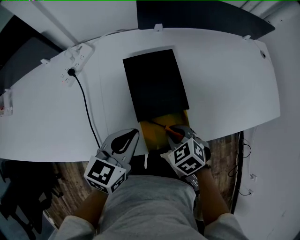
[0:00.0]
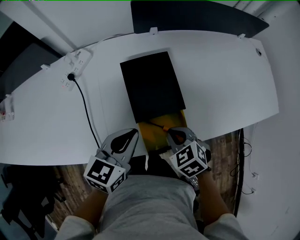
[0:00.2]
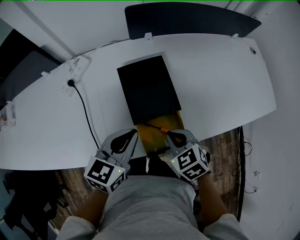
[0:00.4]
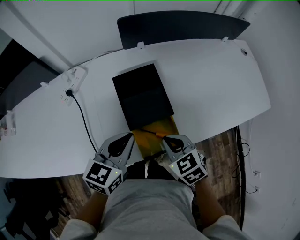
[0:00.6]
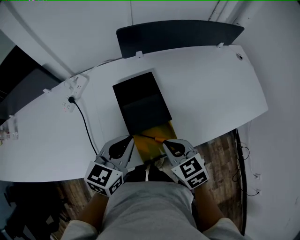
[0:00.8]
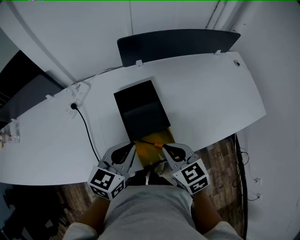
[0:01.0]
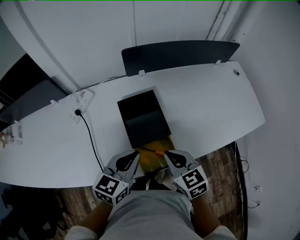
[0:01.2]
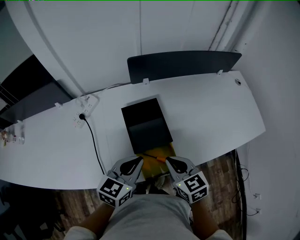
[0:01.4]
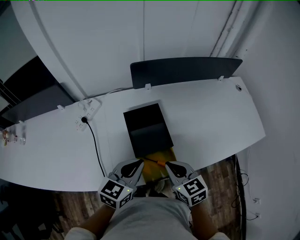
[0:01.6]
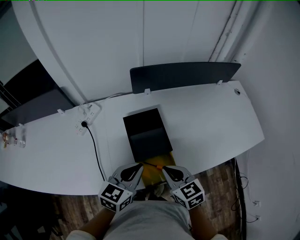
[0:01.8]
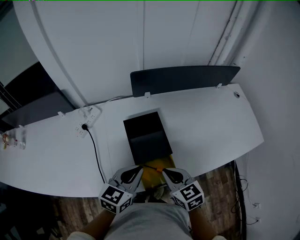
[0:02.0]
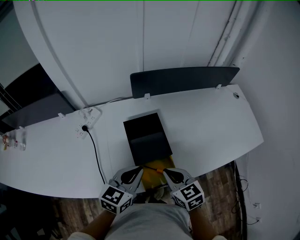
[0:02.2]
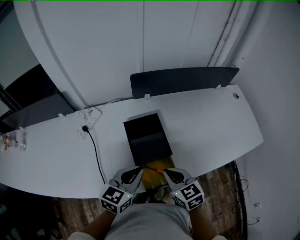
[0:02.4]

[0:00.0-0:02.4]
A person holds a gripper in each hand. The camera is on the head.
0:00.0 to 0:01.2: The right gripper heads upward, covering some 15 cm, and changes its angle by about 30 degrees. The left gripper heads upward, covering about 5 cm.
0:01.2 to 0:02.4: The grippers move only a little.

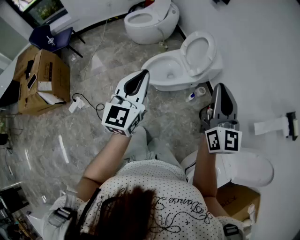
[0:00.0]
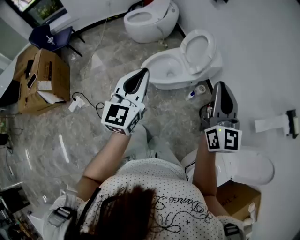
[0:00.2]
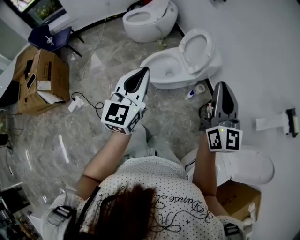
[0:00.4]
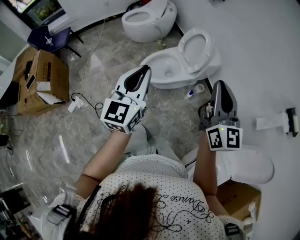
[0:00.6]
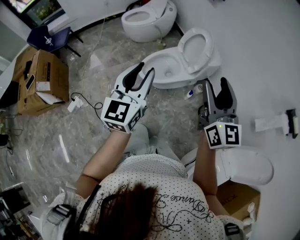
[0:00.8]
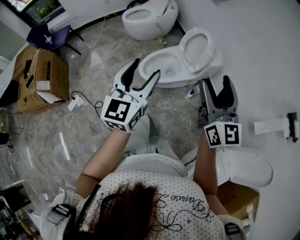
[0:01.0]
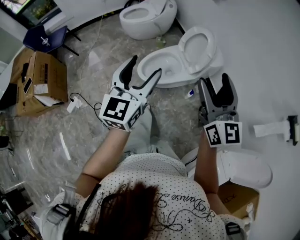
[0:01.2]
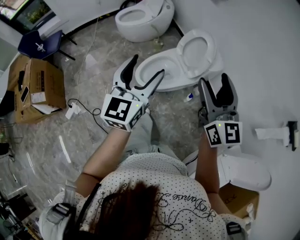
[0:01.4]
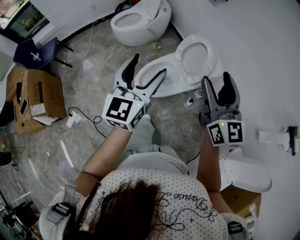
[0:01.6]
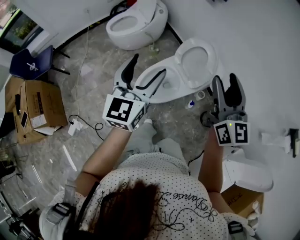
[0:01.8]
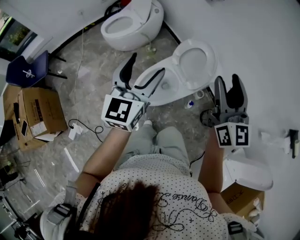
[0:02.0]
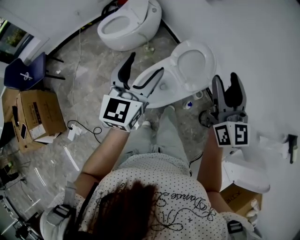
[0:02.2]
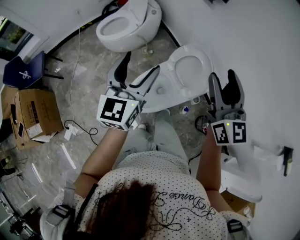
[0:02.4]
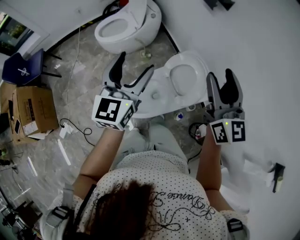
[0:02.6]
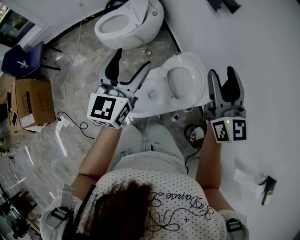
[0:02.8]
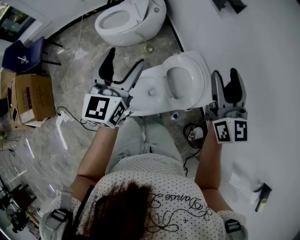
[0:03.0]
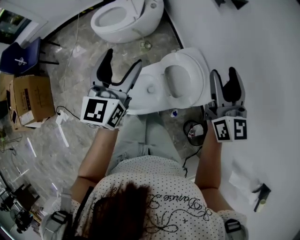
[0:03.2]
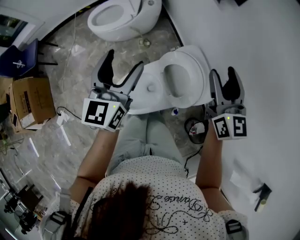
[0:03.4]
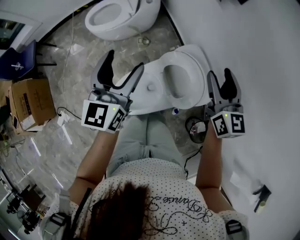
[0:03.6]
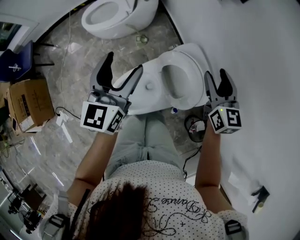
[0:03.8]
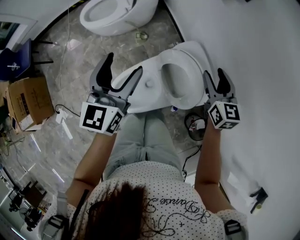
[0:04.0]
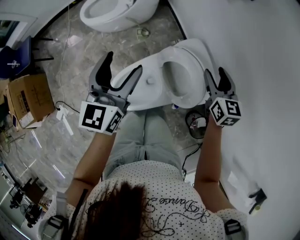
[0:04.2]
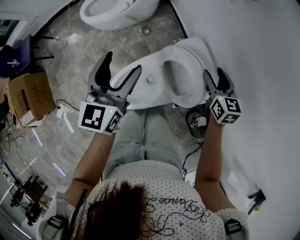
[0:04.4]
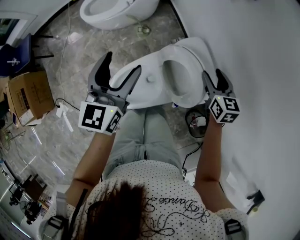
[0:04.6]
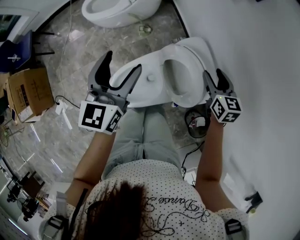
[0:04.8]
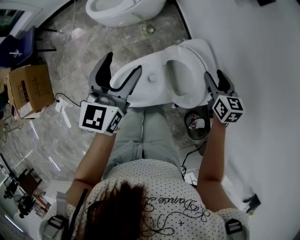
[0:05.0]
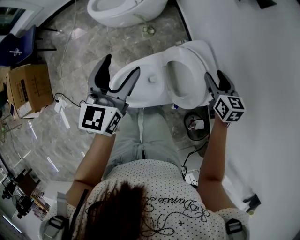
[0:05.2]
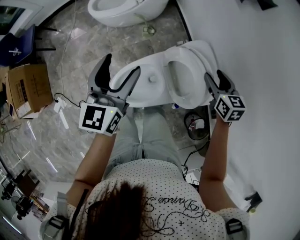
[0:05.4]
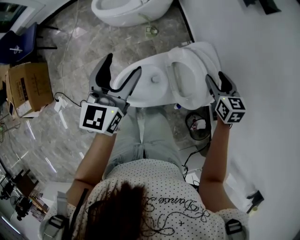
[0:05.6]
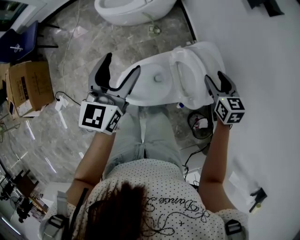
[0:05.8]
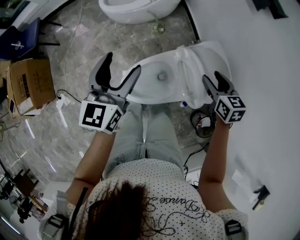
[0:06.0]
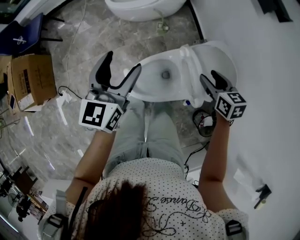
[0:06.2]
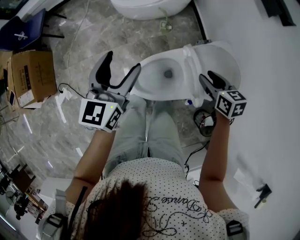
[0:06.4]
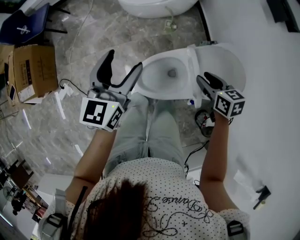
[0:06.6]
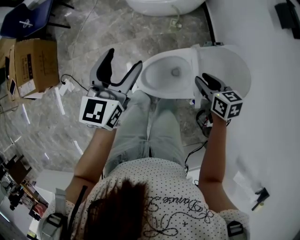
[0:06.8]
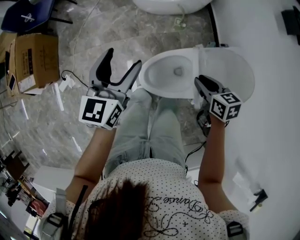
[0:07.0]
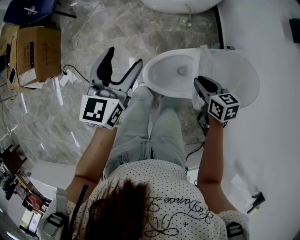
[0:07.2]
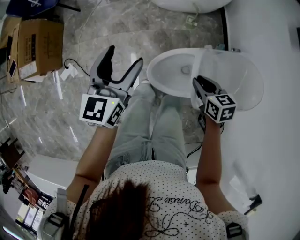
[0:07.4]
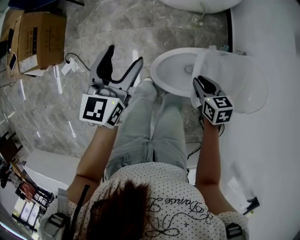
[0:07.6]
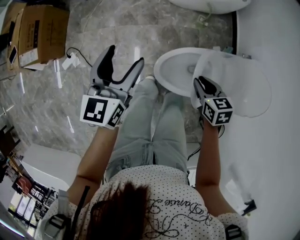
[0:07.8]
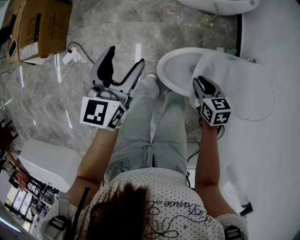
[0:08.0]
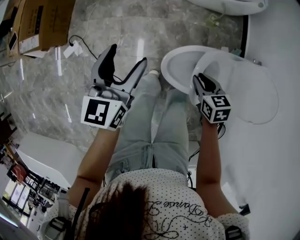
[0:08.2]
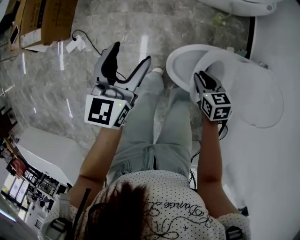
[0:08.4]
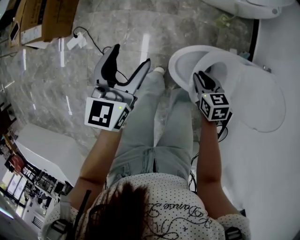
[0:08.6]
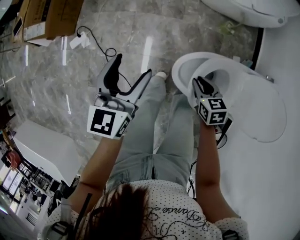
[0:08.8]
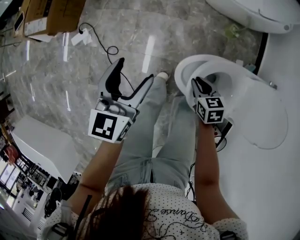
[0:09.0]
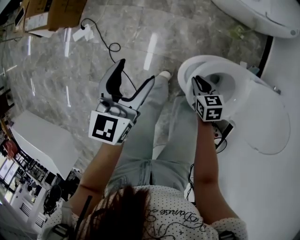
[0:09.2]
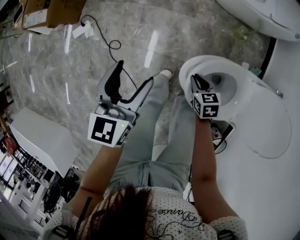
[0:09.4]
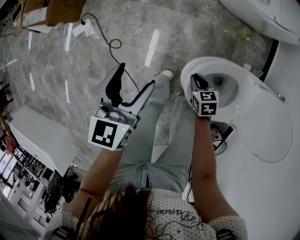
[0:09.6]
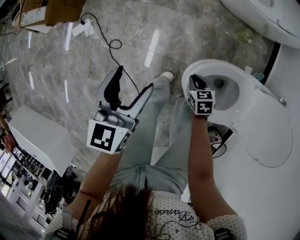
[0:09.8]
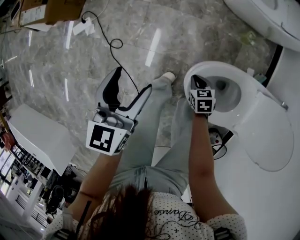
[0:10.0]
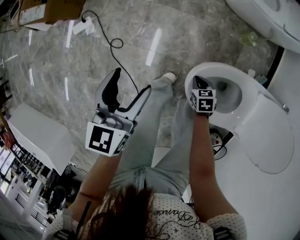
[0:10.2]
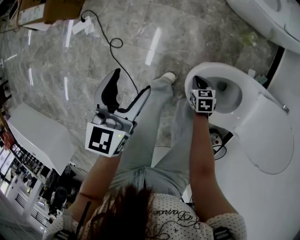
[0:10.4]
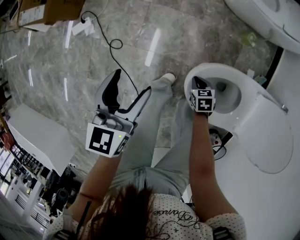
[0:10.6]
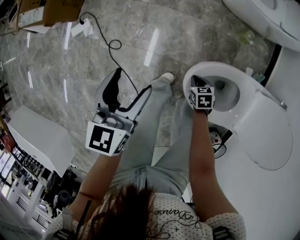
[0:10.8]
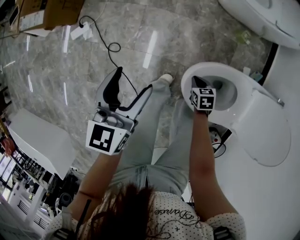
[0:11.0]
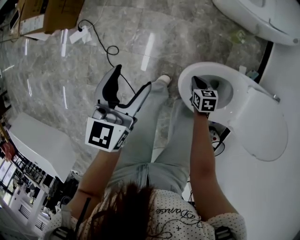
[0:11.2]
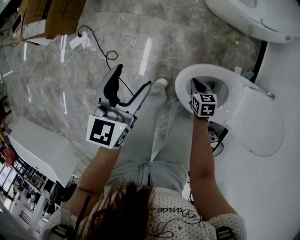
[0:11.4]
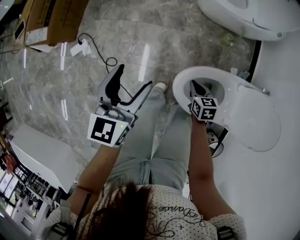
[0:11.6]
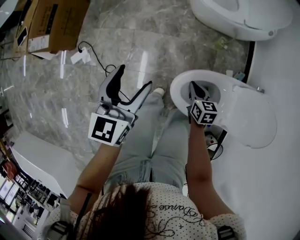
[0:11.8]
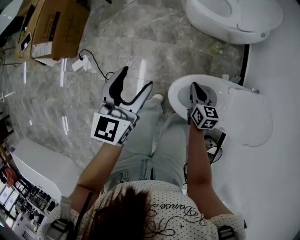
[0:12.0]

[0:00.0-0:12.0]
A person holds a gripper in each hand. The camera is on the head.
0:00.0 to 0:01.6: The two grippers go about 20 cm forward. The right gripper opens its fingers; the left gripper opens up.
0:01.6 to 0:03.0: Both grippers move forward, approximately 35 cm.
0:03.0 to 0:04.4: The left gripper goes about 10 cm downward and forward, while the right gripper heads downward, covering roughly 25 cm, and tips its fingers downward by about 30 degrees.
0:04.4 to 0:06.0: The two grippers go approximately 15 cm to the left.
0:06.0 to 0:07.6: The two grippers go some 25 cm to the left. The right gripper rotates approximately 20 degrees, and closes.
0:07.6 to 0:09.0: The left gripper travels to the left and downward by roughly 15 cm; the right gripper goes roughly 20 cm downward and to the left.
0:09.0 to 0:10.4: The right gripper travels downward by roughly 20 cm; the left gripper moves downward and to the left, some 10 cm.
0:10.4 to 0:12.0: The left gripper shifts about 15 cm upward. Meanwhile the right gripper heads upward, covering roughly 30 cm, and swivels approximately 40 degrees.

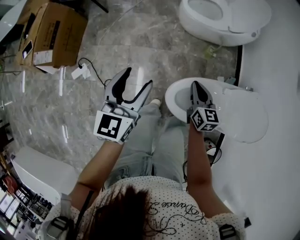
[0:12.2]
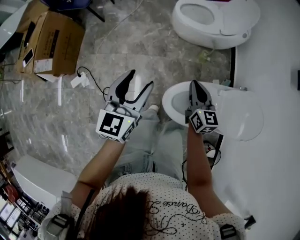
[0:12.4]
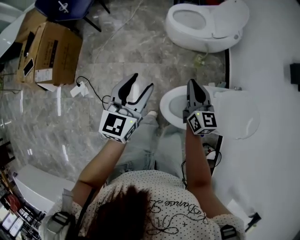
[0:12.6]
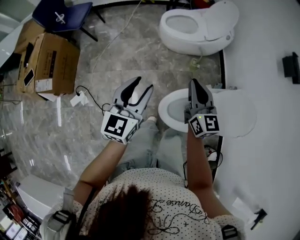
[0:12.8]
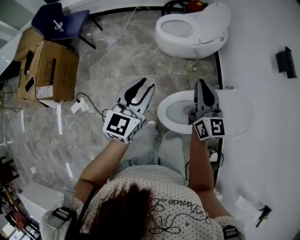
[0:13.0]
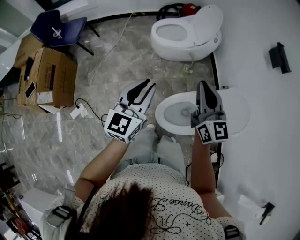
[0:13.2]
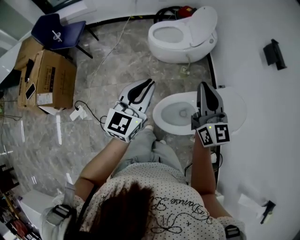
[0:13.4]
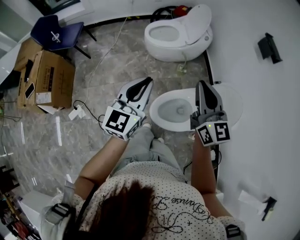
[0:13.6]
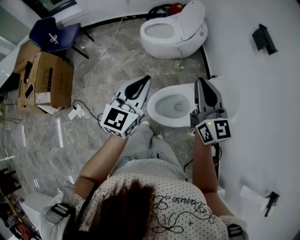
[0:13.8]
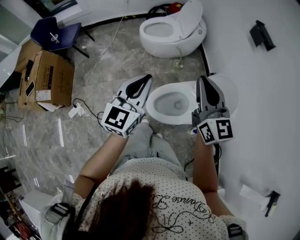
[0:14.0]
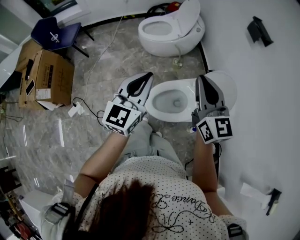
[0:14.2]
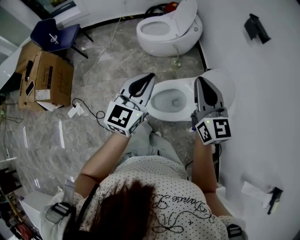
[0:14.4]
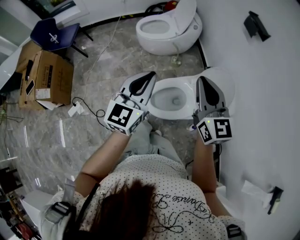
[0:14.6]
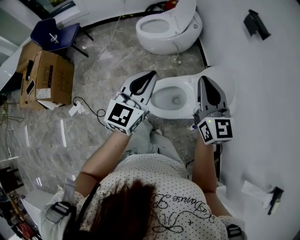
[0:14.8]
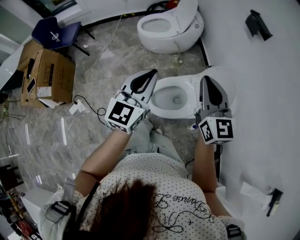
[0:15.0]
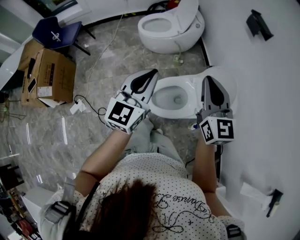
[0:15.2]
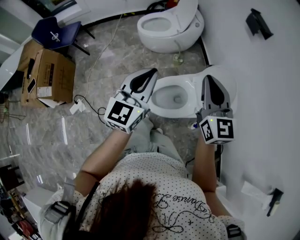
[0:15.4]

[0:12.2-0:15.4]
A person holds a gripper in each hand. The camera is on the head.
0:12.2 to 0:13.8: The left gripper shifts approximately 25 cm to the right and upward, swivels some 30 degrees, and closes its fingers. The right gripper heads upward and to the right, covering about 35 cm, and turns by roughly 30 degrees.
0:13.8 to 0:15.4: Both grippers move to the right, some 5 cm.

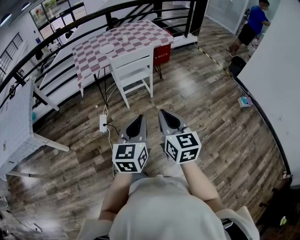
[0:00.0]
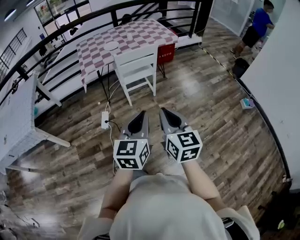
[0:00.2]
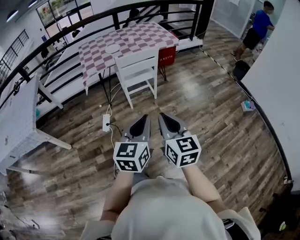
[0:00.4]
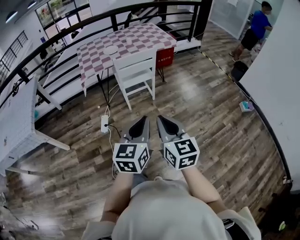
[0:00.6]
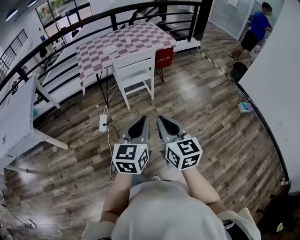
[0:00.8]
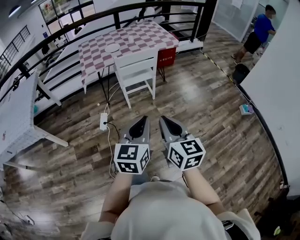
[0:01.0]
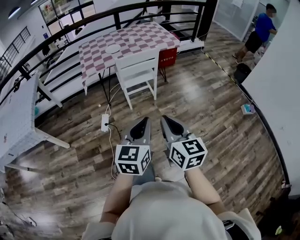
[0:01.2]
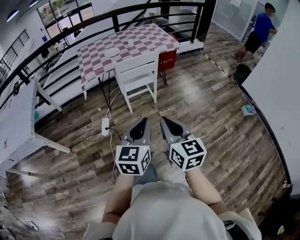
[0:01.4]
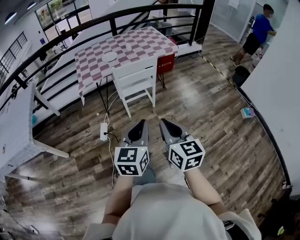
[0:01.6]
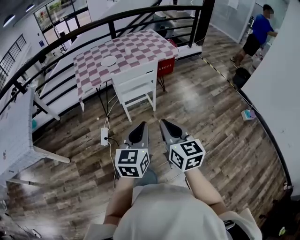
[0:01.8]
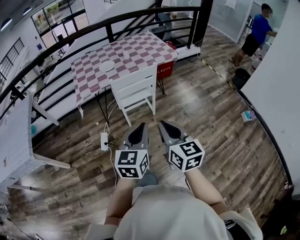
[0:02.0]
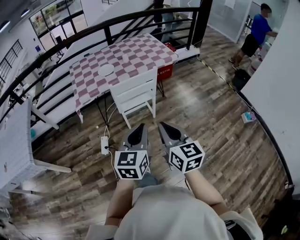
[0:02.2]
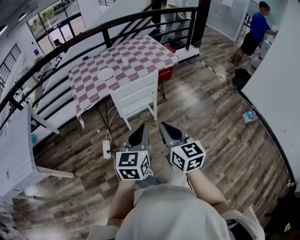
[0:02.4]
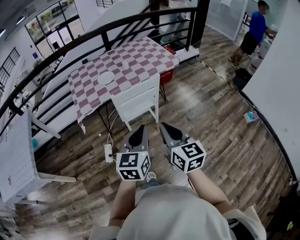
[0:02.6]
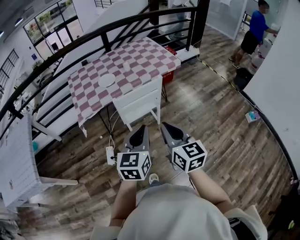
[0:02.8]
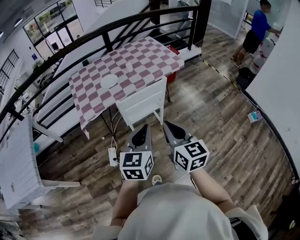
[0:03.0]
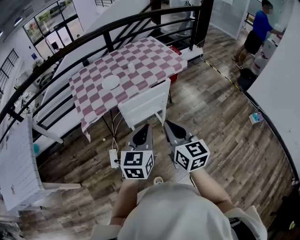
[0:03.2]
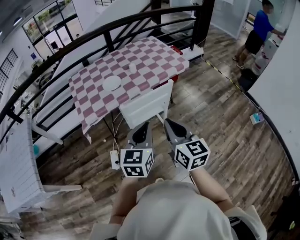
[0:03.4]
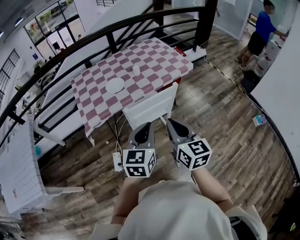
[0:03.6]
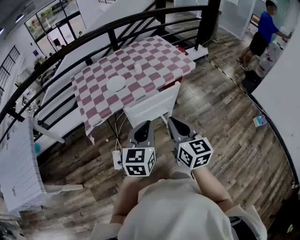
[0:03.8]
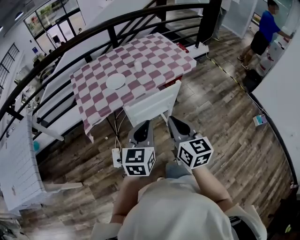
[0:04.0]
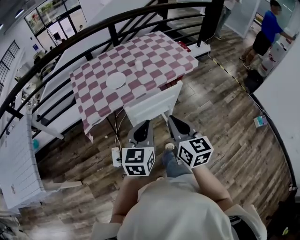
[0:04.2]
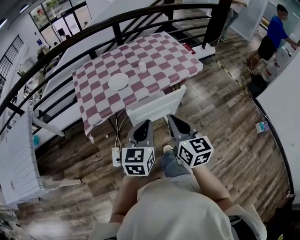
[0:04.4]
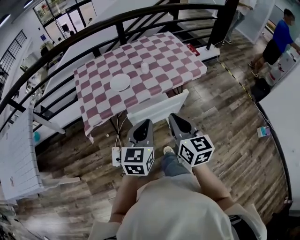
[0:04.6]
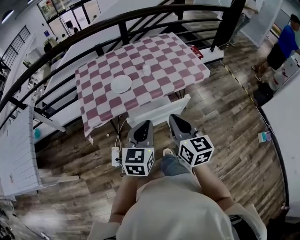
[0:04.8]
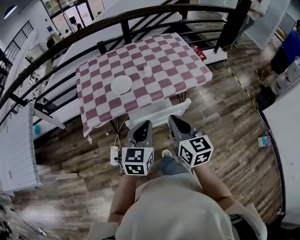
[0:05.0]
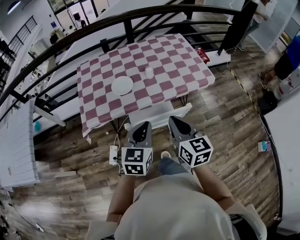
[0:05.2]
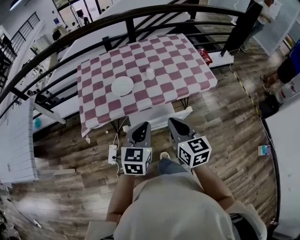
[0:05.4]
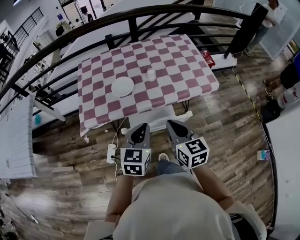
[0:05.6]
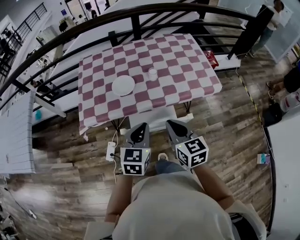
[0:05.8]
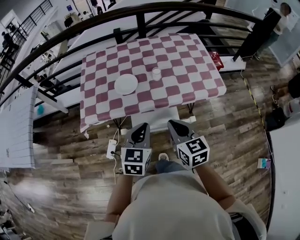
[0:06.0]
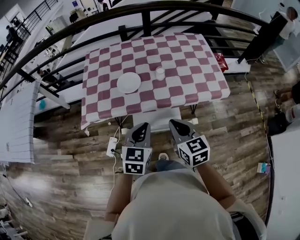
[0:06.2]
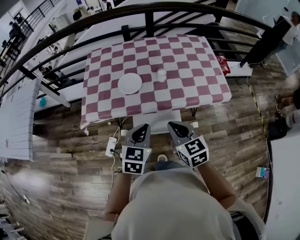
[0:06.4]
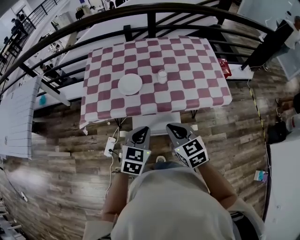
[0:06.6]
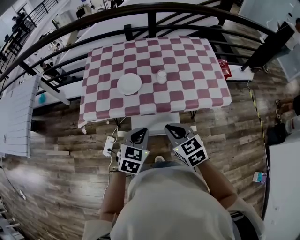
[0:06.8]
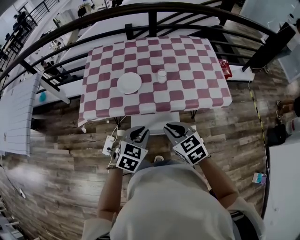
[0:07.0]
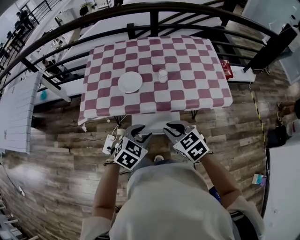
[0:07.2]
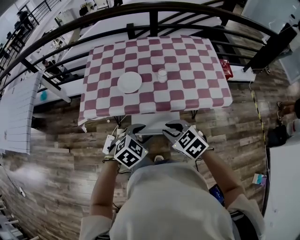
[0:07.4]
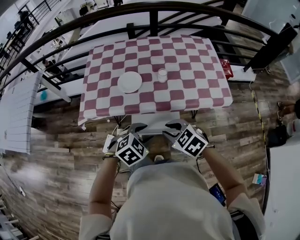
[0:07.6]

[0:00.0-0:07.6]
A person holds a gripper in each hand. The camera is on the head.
0:00.0 to 0:01.6: The grippers both shift forward by approximately 5 cm.
0:01.6 to 0:03.0: Both grippers move forward, roughly 25 cm.
0:03.0 to 0:04.6: The two grippers go about 15 cm forward.
0:04.6 to 0:06.0: The grippers both shift forward and downward by approximately 15 cm. The right gripper swivels roughly 30 degrees.
0:06.0 to 0:07.6: The two grippers go about 10 cm downward. The right gripper rotates some 50 degrees, and opens its fingers; the left gripper turns by approximately 40 degrees, and opens its fingers.
